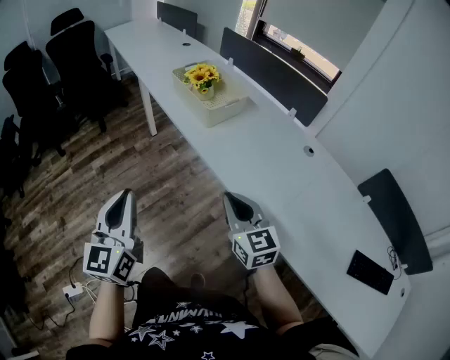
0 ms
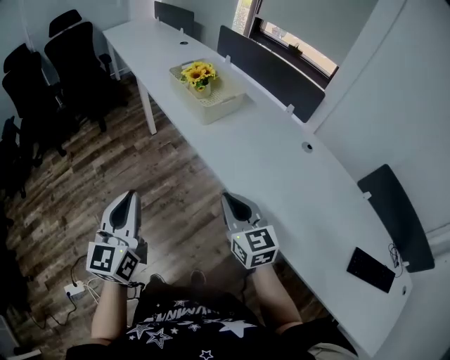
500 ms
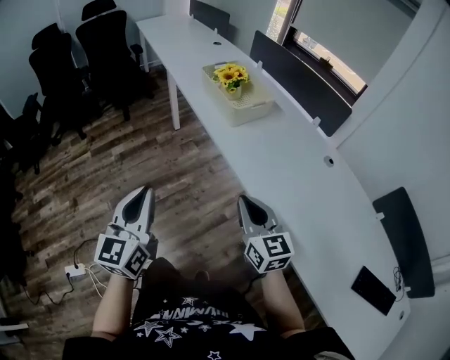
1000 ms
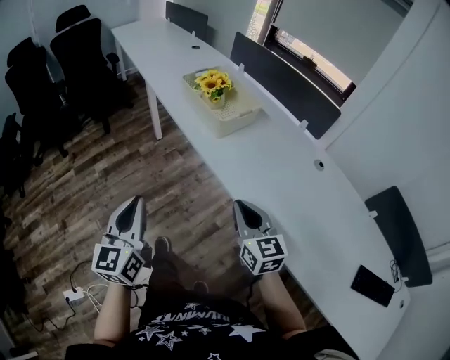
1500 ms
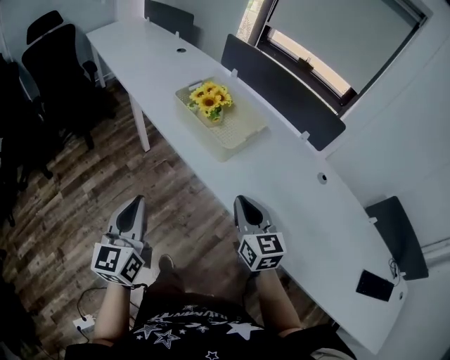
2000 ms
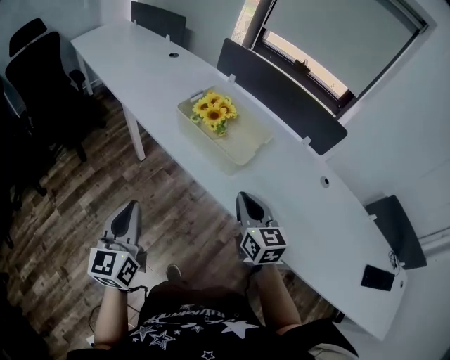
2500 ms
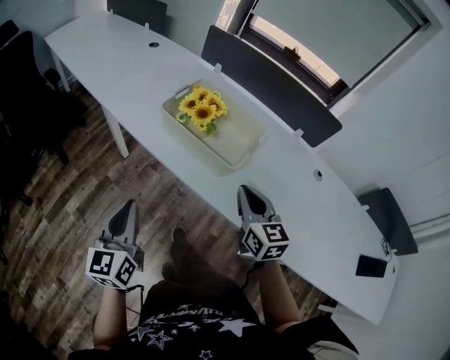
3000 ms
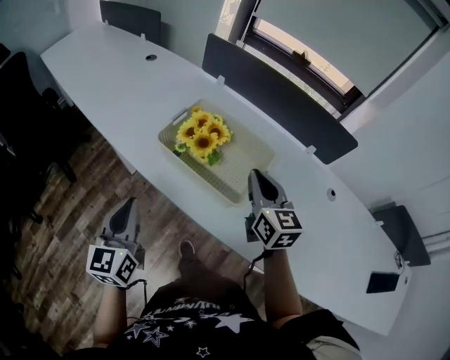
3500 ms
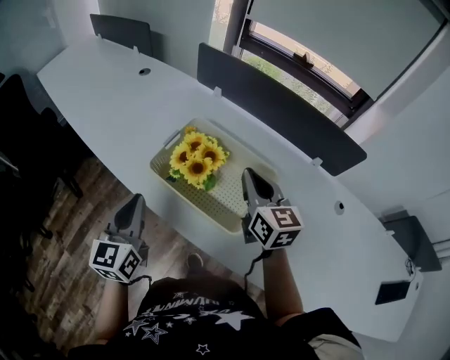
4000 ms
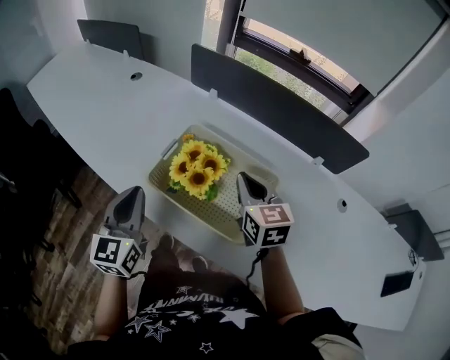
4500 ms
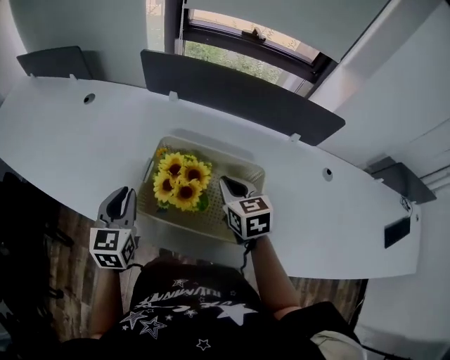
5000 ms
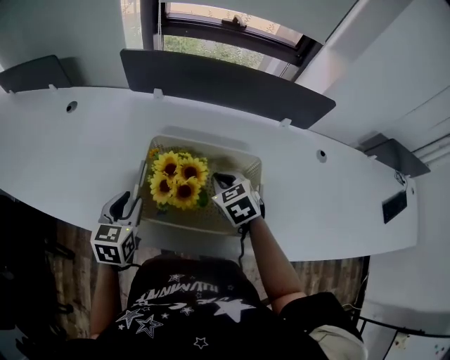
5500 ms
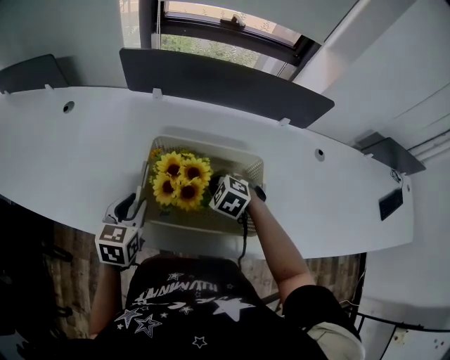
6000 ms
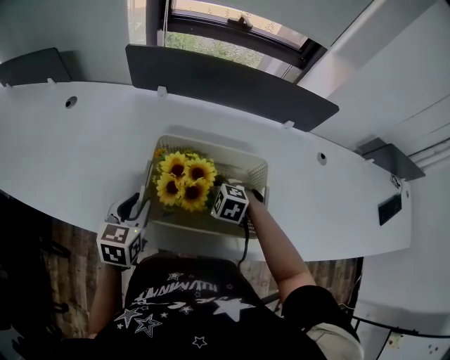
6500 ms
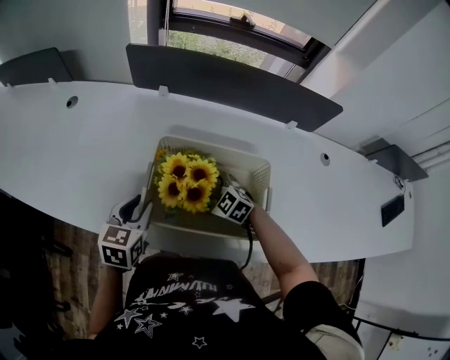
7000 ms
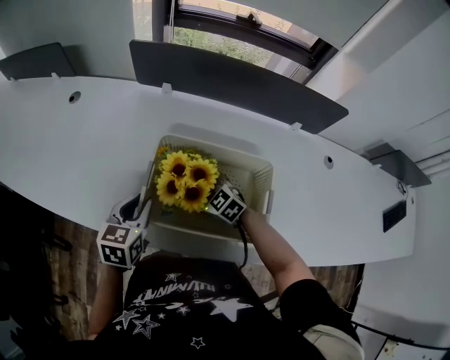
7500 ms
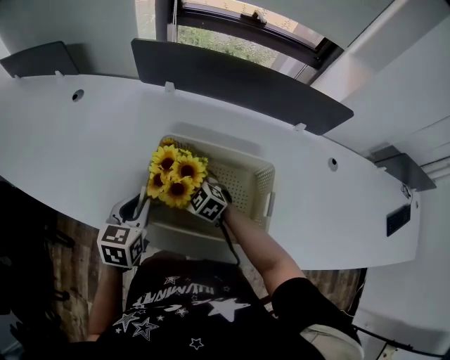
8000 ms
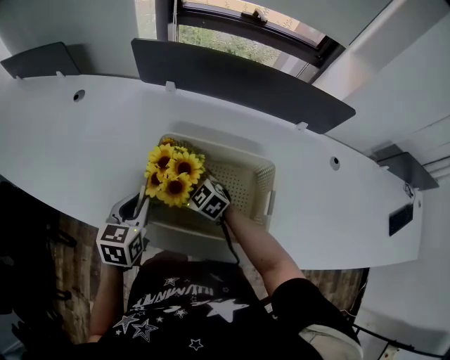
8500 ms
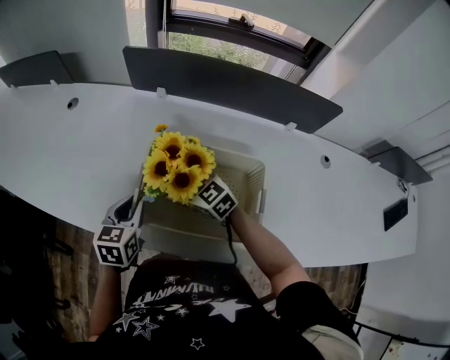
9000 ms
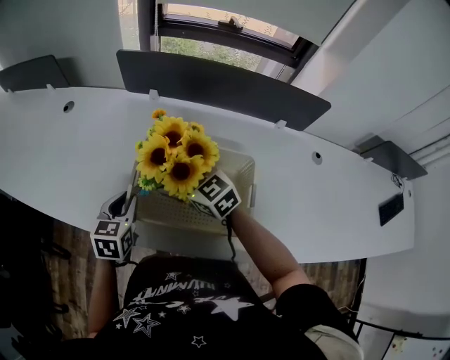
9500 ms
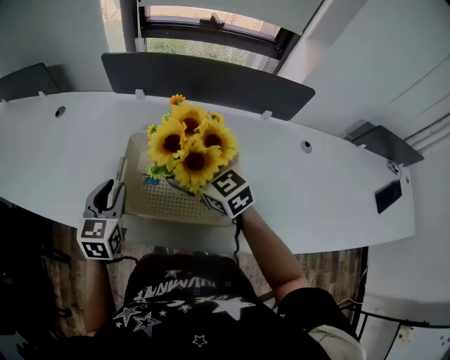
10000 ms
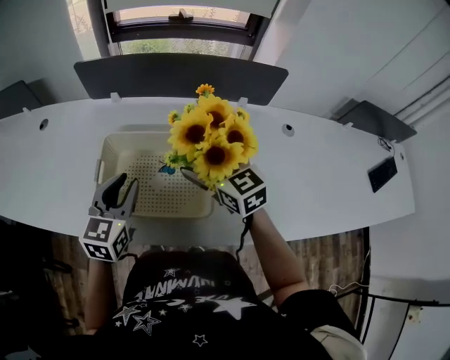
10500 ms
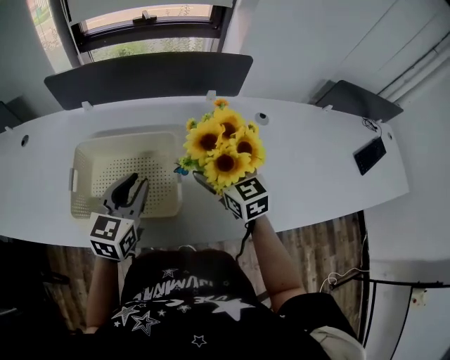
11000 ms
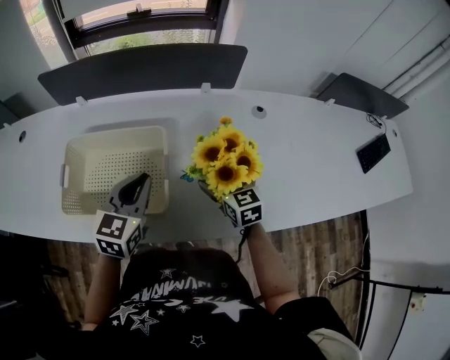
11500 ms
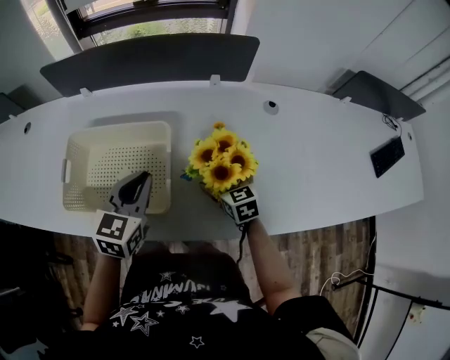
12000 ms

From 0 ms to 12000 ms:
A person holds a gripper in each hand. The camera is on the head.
From 0 ms to 2000 ms: Both grippers move forward, approximately 20 cm.
From 2000 ms to 4000 ms: Both grippers move forward, approximately 35 cm.
From 4000 ms to 6000 ms: The left gripper is displaced forward and downward by some 20 cm, turns by roughly 40 degrees, and opens. Meanwhile the right gripper travels downward by approximately 20 cm, and tips its fingers downward by roughly 50 degrees.
From 6000 ms to 8000 ms: The right gripper is displaced to the left by about 10 cm, swivels some 30 degrees, and opens up.
From 8000 ms to 10000 ms: The right gripper goes about 20 cm upward and to the right, and changes its angle by approximately 30 degrees, while the left gripper goes roughly 5 cm upward.
From 10000 ms to 12000 ms: The right gripper ends up some 35 cm from where it was, and turns by about 30 degrees. Meanwhile the left gripper moves roughly 30 cm, and closes.

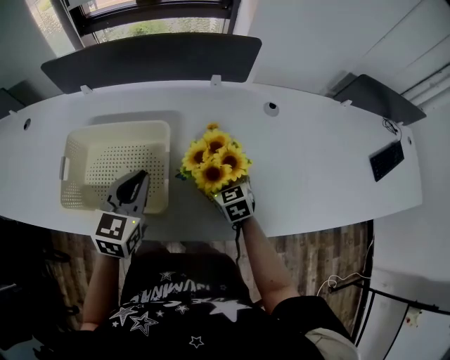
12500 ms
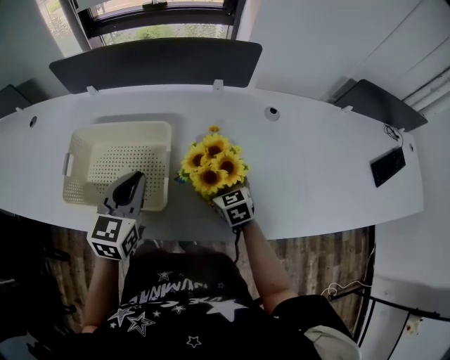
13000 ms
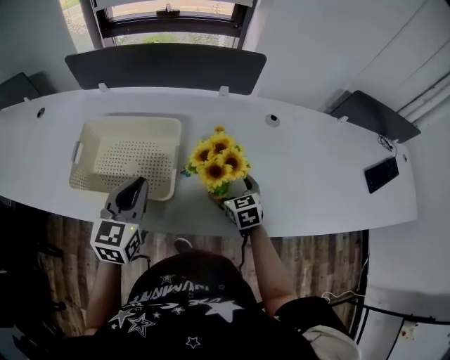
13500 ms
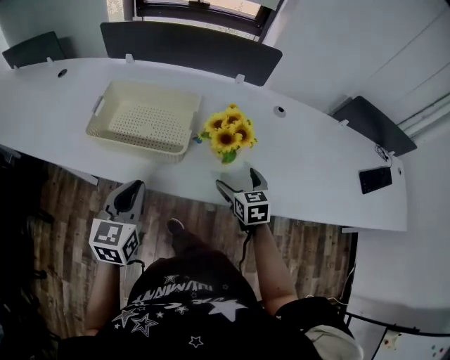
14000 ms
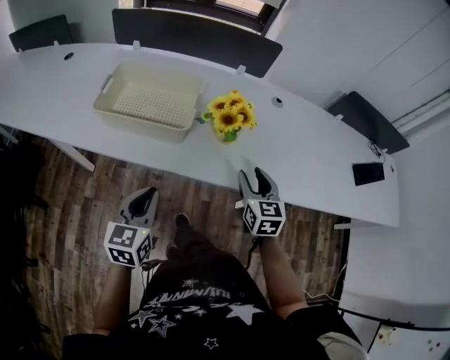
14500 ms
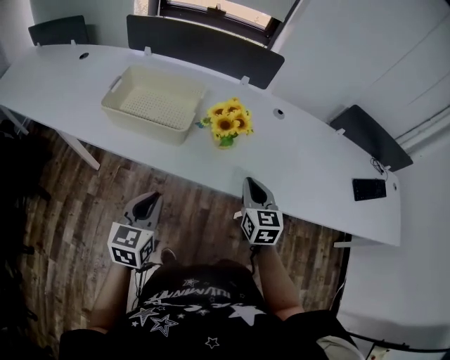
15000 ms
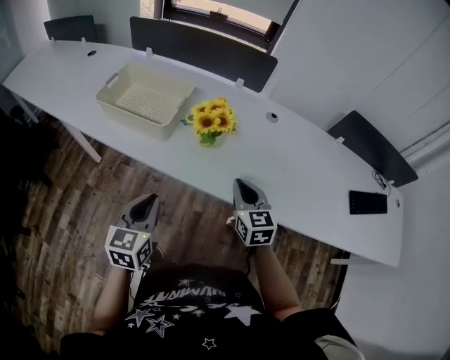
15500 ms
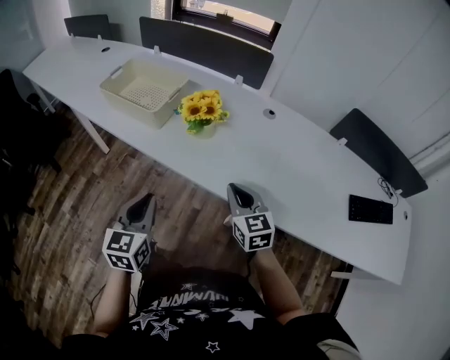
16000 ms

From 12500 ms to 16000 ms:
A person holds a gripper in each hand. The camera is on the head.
From 12500 ms to 14500 ms: The left gripper is displaced backward by about 30 cm, while the right gripper shifts approximately 25 cm backward and upward, and closes its fingers.
From 14500 ms to 16000 ms: The left gripper changes place by about 20 cm, and swivels roughly 20 degrees. Meanwhile the right gripper shifts by some 15 cm, swivels about 30 degrees, and closes its fingers.

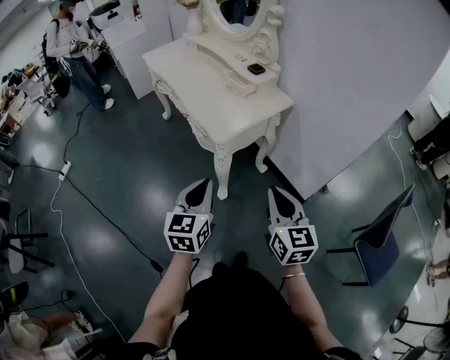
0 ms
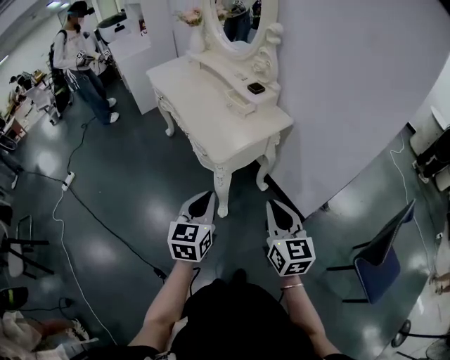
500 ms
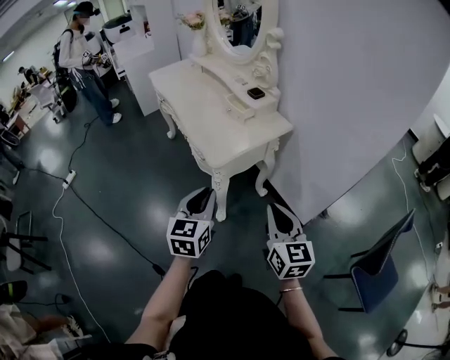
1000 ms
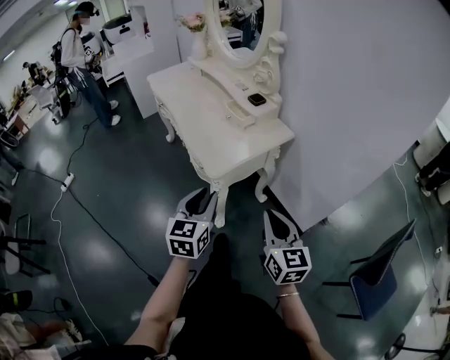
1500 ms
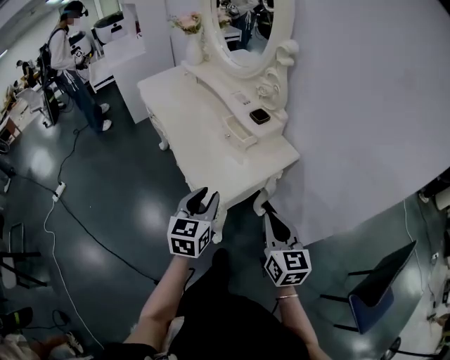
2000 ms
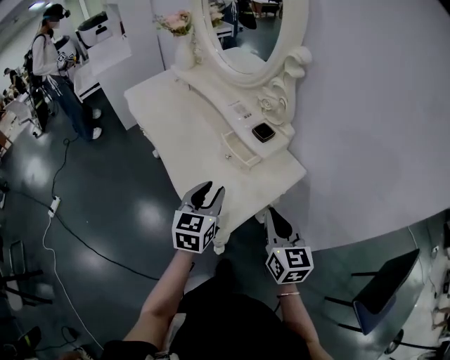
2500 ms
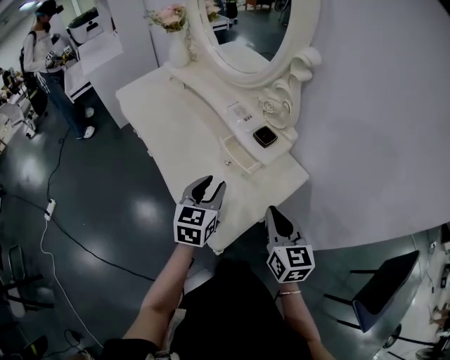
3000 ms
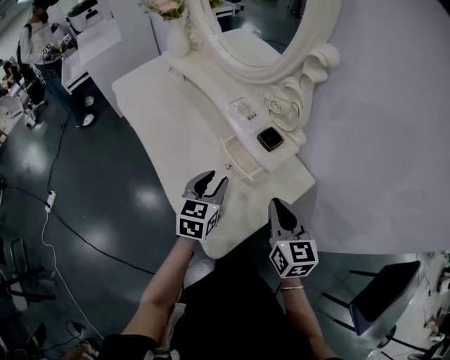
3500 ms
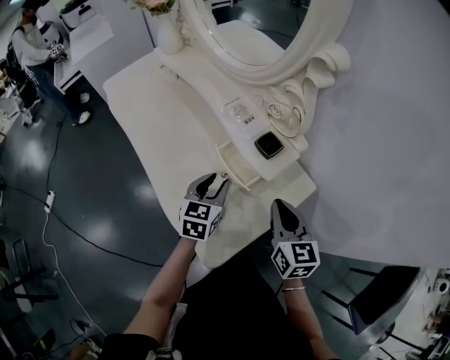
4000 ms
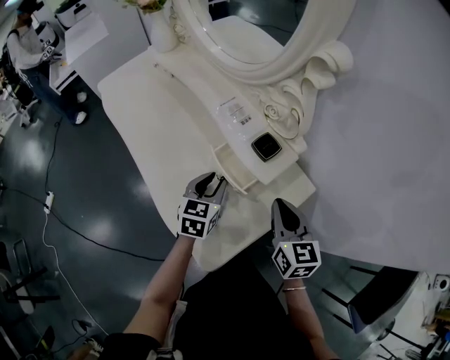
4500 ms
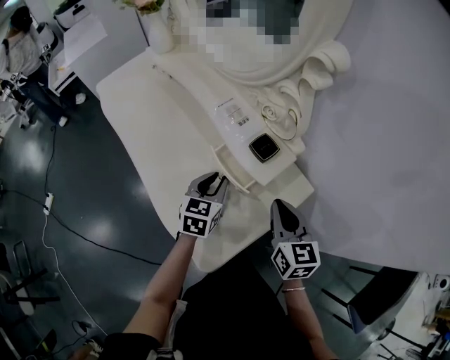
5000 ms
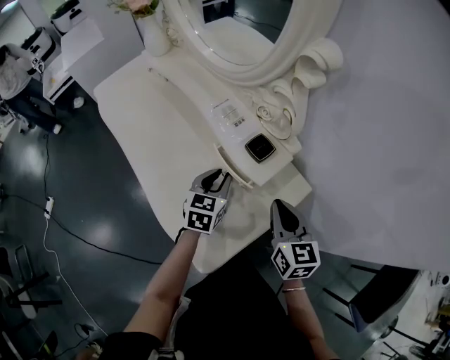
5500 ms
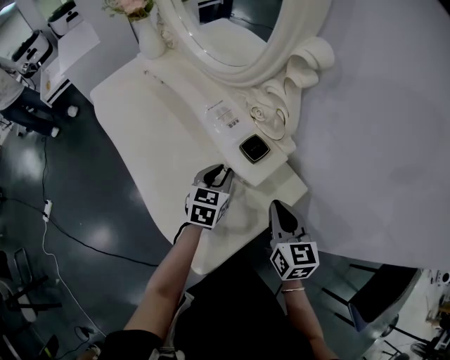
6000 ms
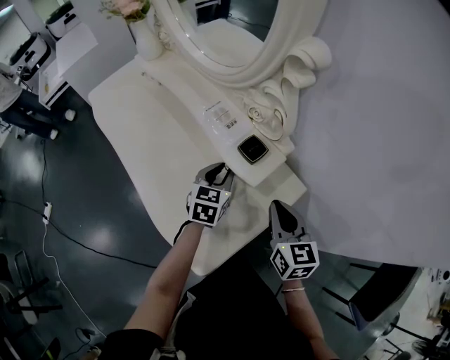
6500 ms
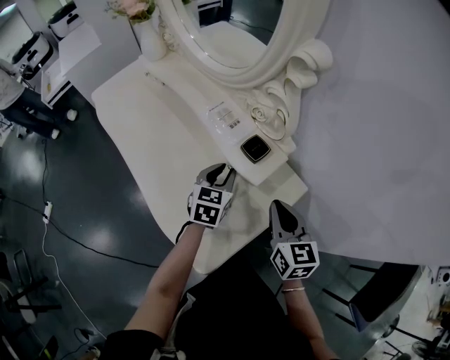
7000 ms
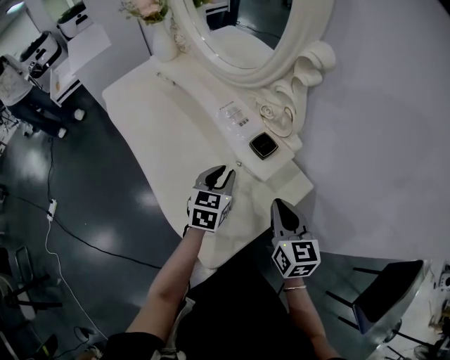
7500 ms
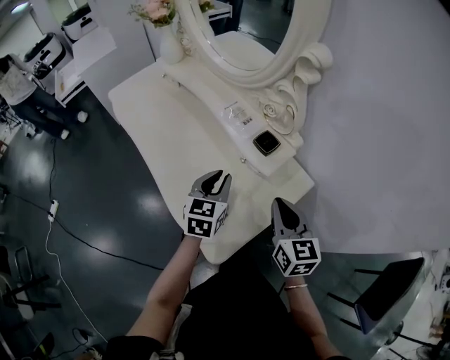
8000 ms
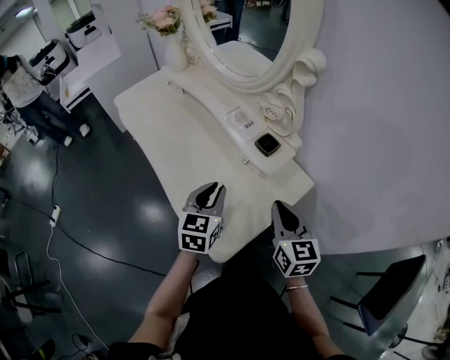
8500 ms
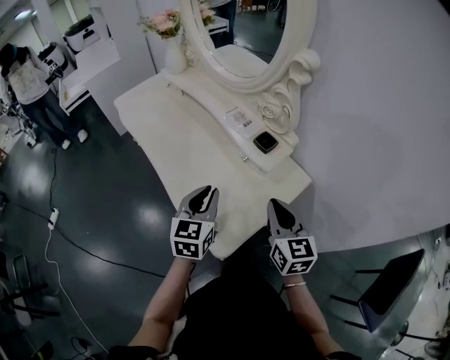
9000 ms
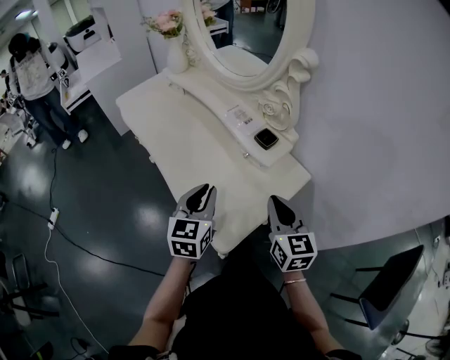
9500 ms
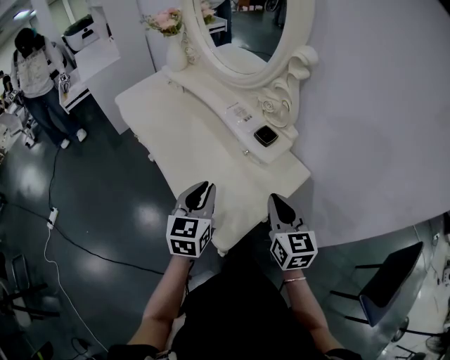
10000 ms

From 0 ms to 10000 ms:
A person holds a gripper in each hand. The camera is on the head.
From 0 ms to 2000 ms: The grippers both shift forward by some 20 cm. The left gripper opens.
From 2000 ms to 4000 ms: Both grippers travel together forward, some 25 cm.
From 4000 ms to 6000 ms: The left gripper goes some 10 cm forward and to the right.
From 6000 ms to 8000 ms: The right gripper shifts by approximately 5 cm. Meanwhile the left gripper shifts some 10 cm backward and upward.
From 8000 ms to 10000 ms: The right gripper is displaced backward by about 5 cm. Meanwhile the left gripper heads backward, to the left and upward, covering roughly 15 cm.

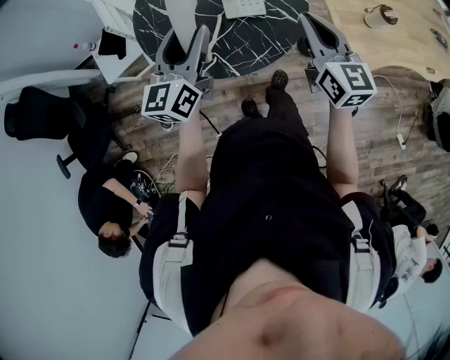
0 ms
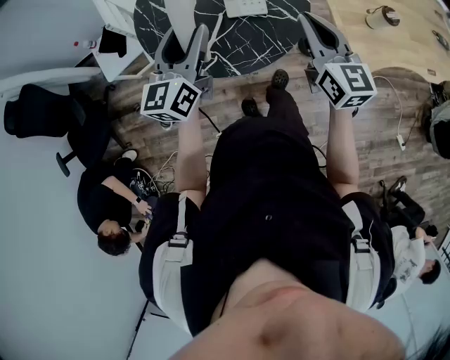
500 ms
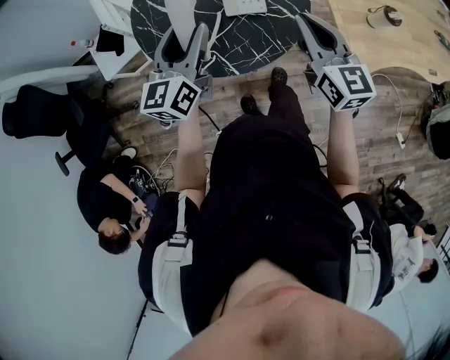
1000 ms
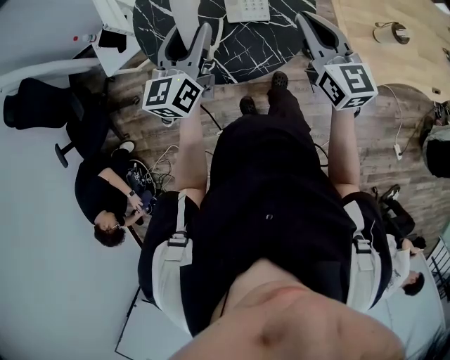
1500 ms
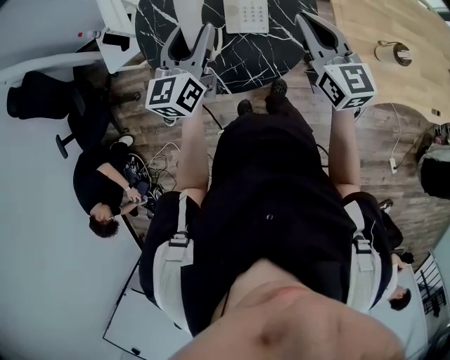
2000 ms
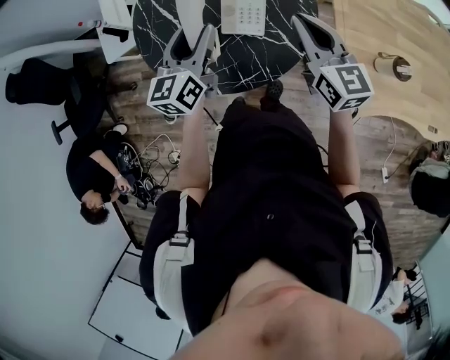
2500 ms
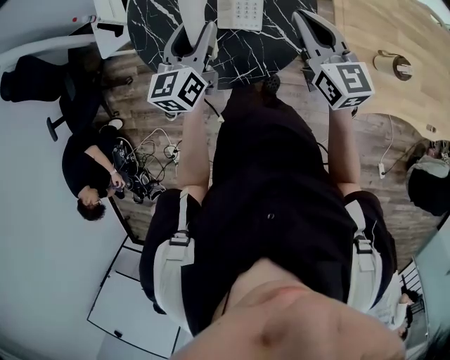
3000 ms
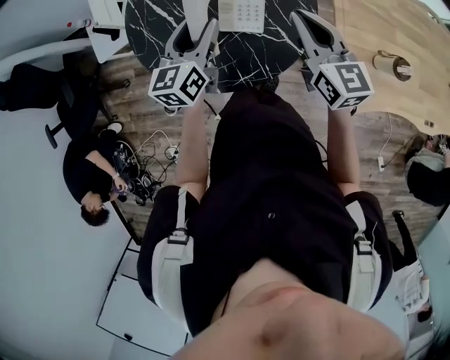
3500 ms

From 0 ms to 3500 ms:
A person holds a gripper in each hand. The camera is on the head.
From 0 ms to 2000 ms: The left gripper moves forward and to the right, roughly 10 cm, while the right gripper moves forward, roughly 15 cm.
From 2000 ms to 3500 ms: The right gripper ends up approximately 5 cm from where it was. The left gripper moves downward, approximately 5 cm.
